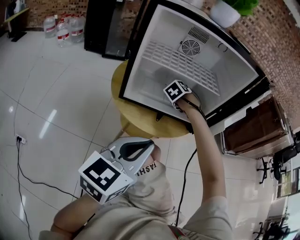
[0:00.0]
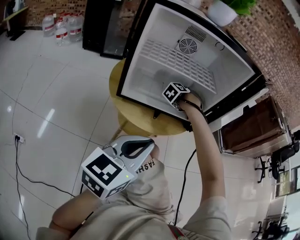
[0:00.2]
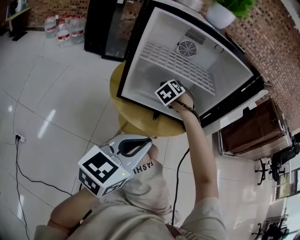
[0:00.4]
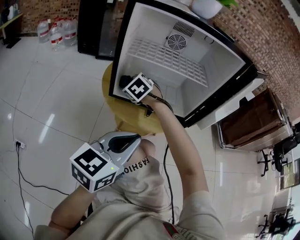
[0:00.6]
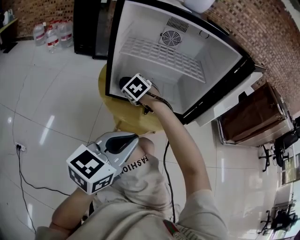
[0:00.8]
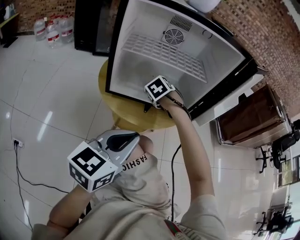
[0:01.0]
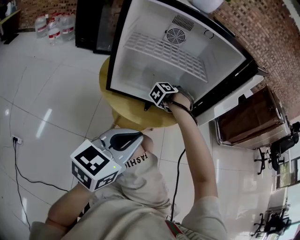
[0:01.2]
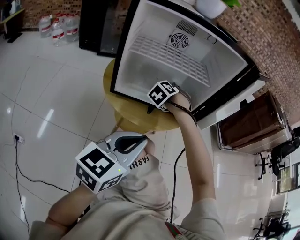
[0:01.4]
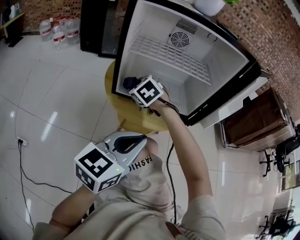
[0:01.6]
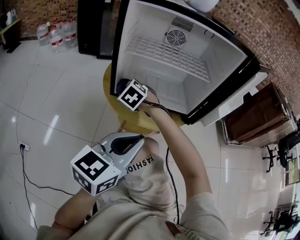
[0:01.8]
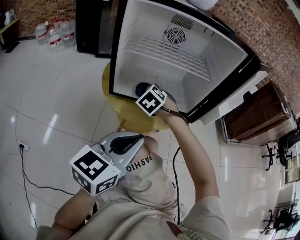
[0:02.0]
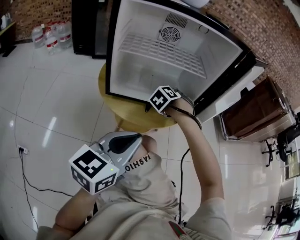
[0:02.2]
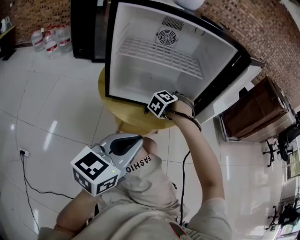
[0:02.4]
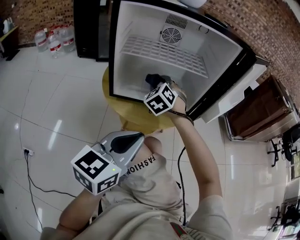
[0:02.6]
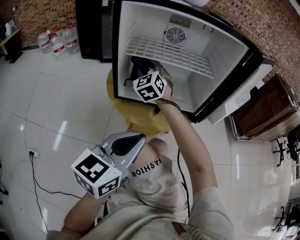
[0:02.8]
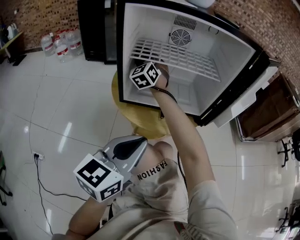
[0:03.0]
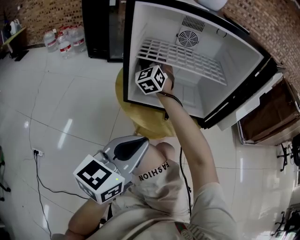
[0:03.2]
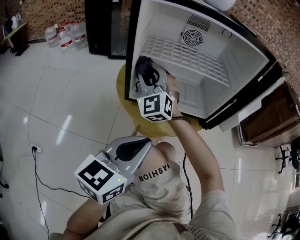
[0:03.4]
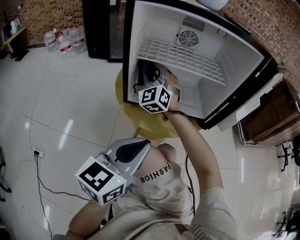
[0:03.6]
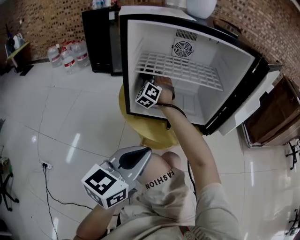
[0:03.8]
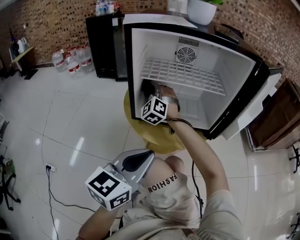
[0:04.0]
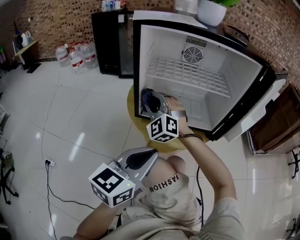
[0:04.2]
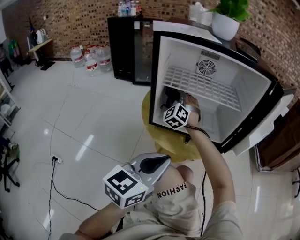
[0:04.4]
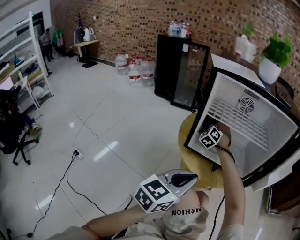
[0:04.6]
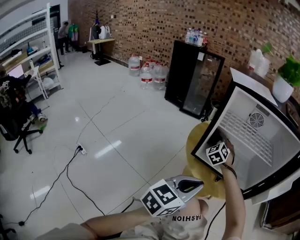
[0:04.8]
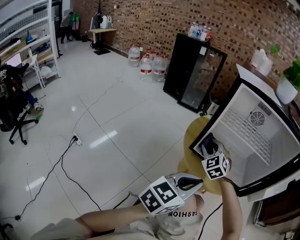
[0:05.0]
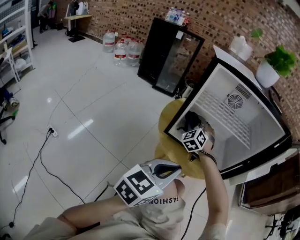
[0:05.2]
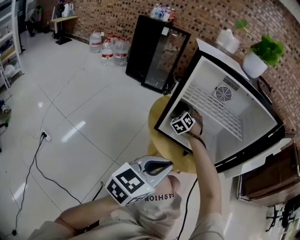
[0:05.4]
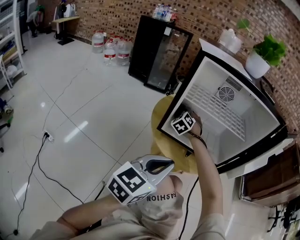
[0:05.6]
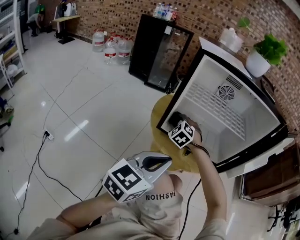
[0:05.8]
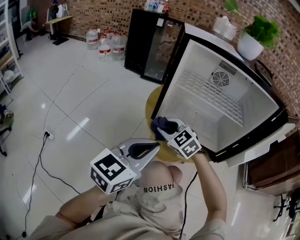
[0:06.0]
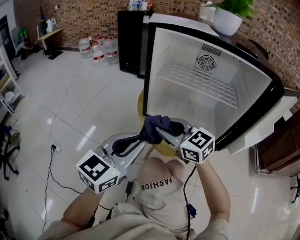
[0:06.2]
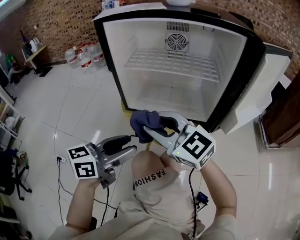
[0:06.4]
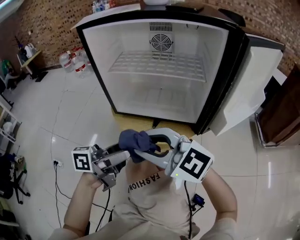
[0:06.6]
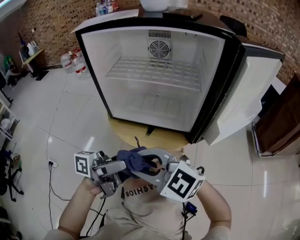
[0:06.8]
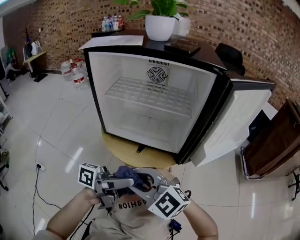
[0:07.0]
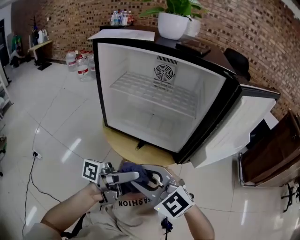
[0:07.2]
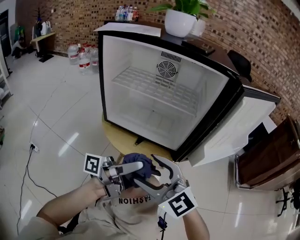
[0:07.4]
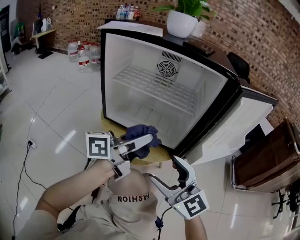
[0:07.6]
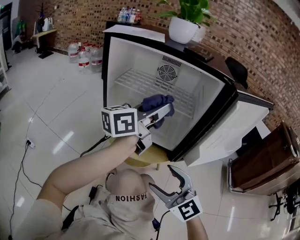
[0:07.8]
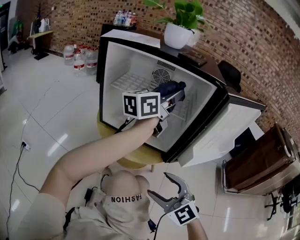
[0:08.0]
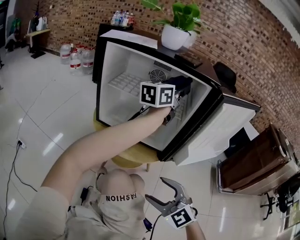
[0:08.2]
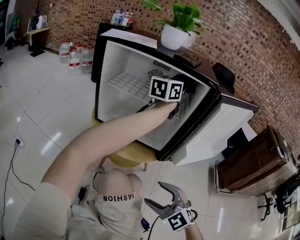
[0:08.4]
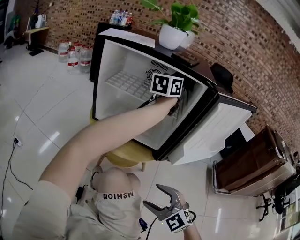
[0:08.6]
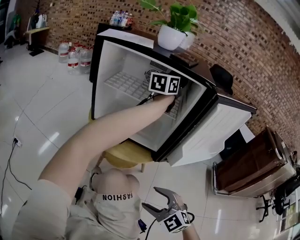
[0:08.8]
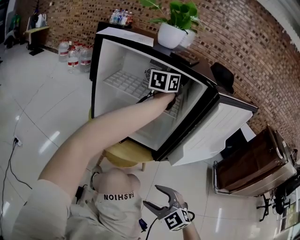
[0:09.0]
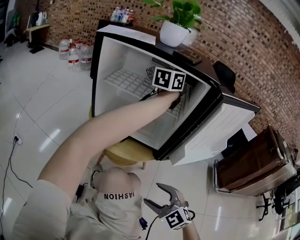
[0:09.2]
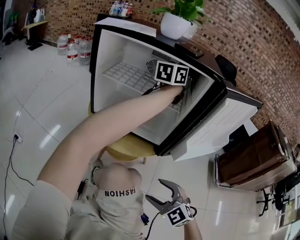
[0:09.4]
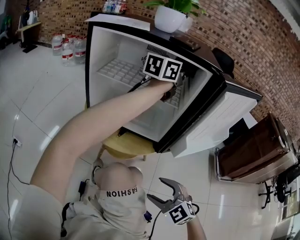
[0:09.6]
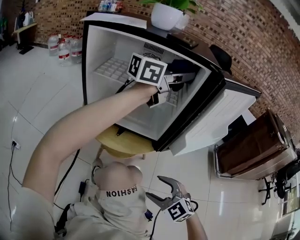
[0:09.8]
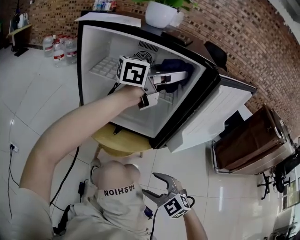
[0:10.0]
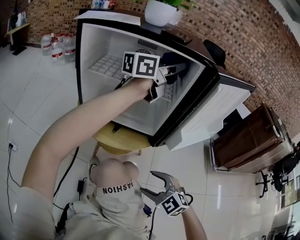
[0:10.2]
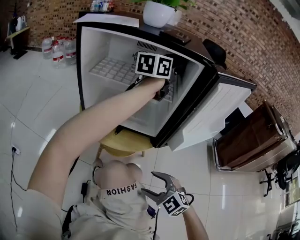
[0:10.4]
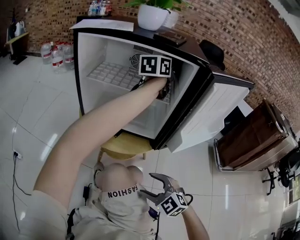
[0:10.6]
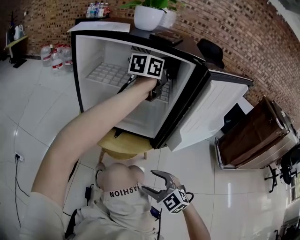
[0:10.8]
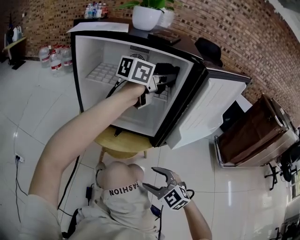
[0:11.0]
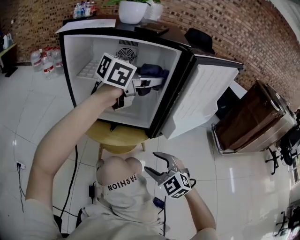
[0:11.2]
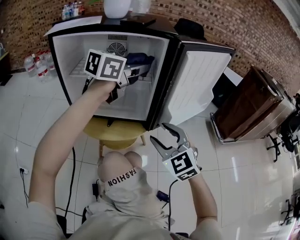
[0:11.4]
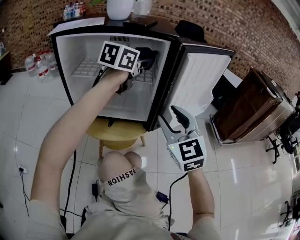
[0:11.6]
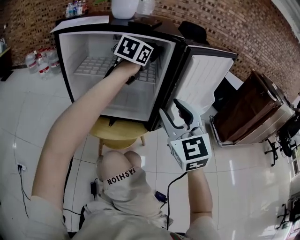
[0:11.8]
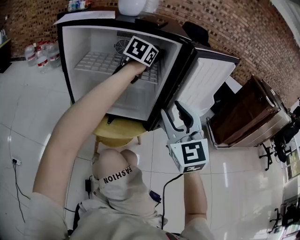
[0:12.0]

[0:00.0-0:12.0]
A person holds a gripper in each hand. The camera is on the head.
0:00.0 to 0:01.6: The right gripper ends up some 20 cm from where it was, and swivels some 40 degrees.
0:01.6 to 0:03.0: The right gripper ends up some 20 cm from where it was, and angles its fingers upward, by about 40 degrees.
0:03.0 to 0:04.4: The right gripper swings forward and backward, about 15 cm each way, with 3 reversals.
0:04.4 to 0:06.0: The right gripper shifts by approximately 20 cm, and turns by approximately 50 degrees. The left gripper changes place by some 5 cm.
0:06.0 to 0:07.6: The right gripper swings up and down, approximately 10 cm each way, with 2 reversals, tips its fingers upward by approximately 40 degrees, and opens up. Meanwhile the left gripper goes downward and returns, roughly 5 cm each way, rolls counterclockwise, seen from behind, by approximately 40 degrees, and opens its fingers.
0:07.6 to 0:09.0: The right gripper goes approximately 20 cm downward, backward and to the right, and tilts its fingers roughly 40 degrees downward, while the left gripper moves forward, upward and to the right, some 35 cm, and changes its angle by some 40 degrees.
0:09.0 to 0:10.4: The left gripper reaches some 15 cm backward, then returns.
0:10.4 to 0:12.0: The right gripper heads upward and forward, covering about 30 cm, angles its fingers upward, by roughly 40 degrees, and closes. Meanwhile the left gripper travels backward and back again, roughly 15 cm each way, and rotates some 30 degrees.

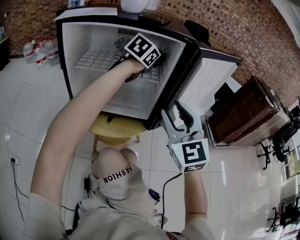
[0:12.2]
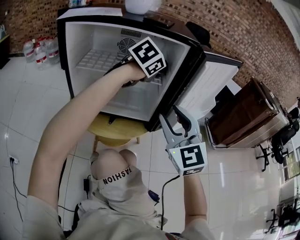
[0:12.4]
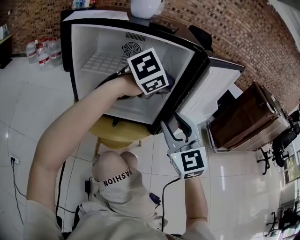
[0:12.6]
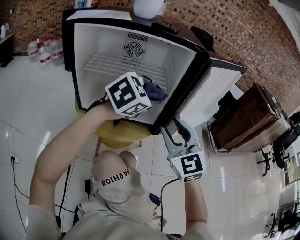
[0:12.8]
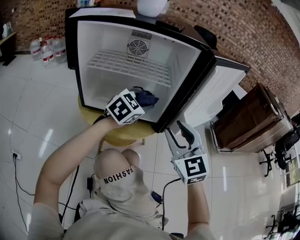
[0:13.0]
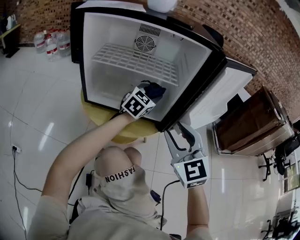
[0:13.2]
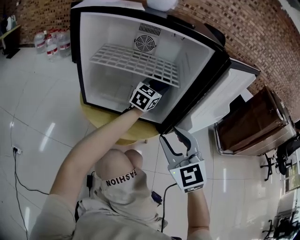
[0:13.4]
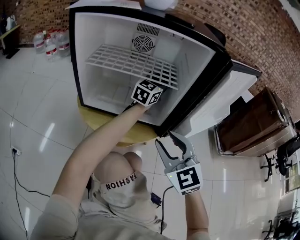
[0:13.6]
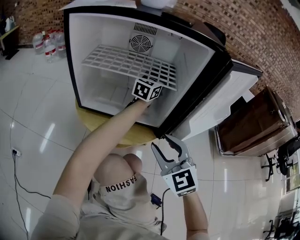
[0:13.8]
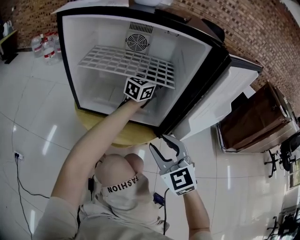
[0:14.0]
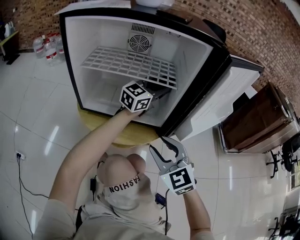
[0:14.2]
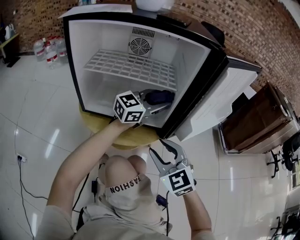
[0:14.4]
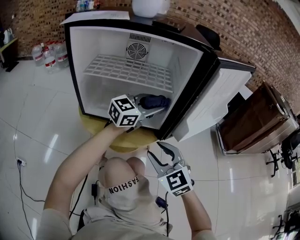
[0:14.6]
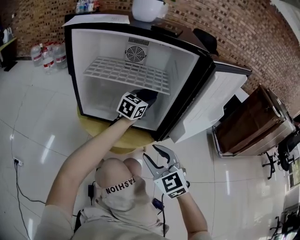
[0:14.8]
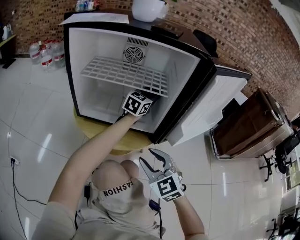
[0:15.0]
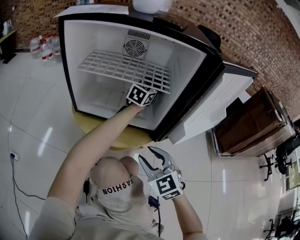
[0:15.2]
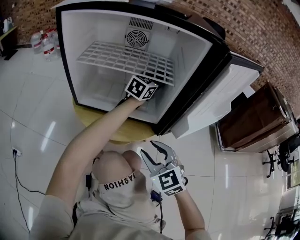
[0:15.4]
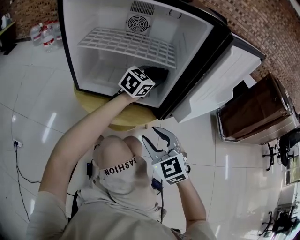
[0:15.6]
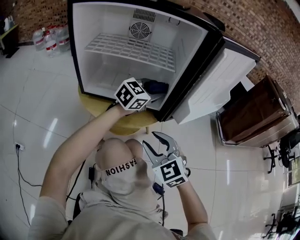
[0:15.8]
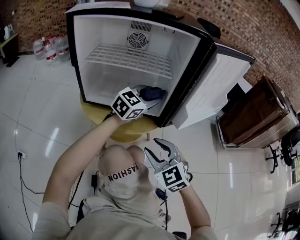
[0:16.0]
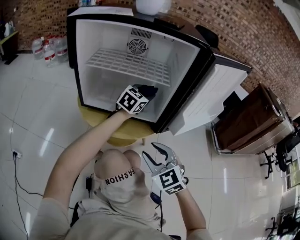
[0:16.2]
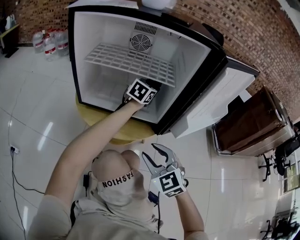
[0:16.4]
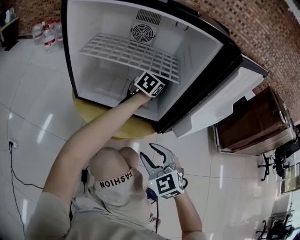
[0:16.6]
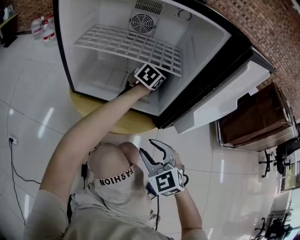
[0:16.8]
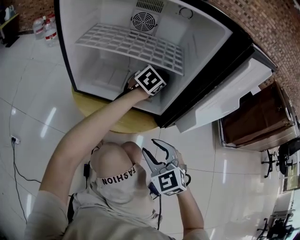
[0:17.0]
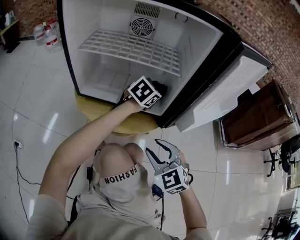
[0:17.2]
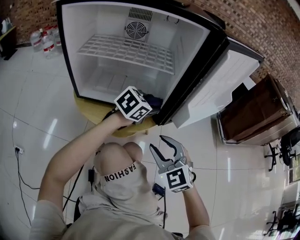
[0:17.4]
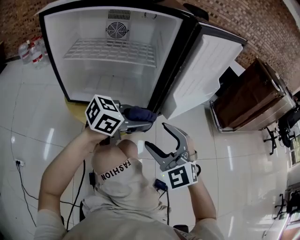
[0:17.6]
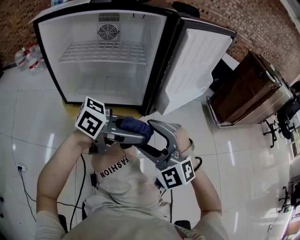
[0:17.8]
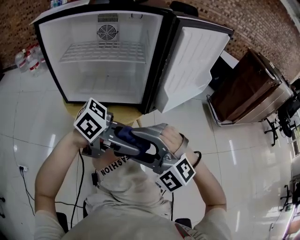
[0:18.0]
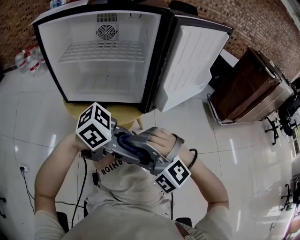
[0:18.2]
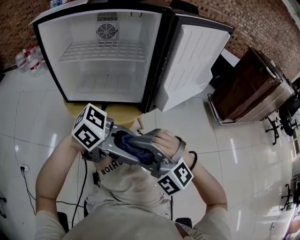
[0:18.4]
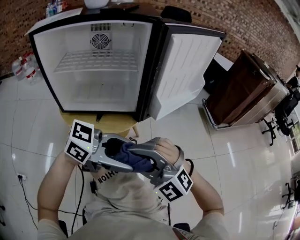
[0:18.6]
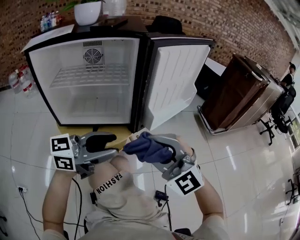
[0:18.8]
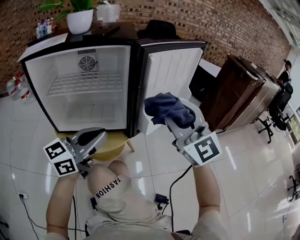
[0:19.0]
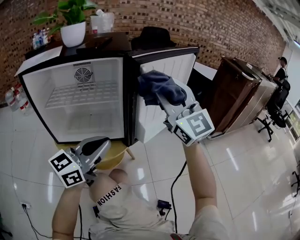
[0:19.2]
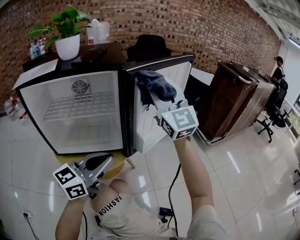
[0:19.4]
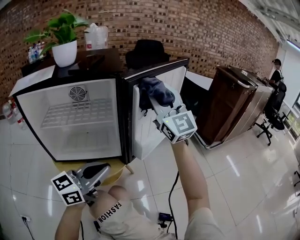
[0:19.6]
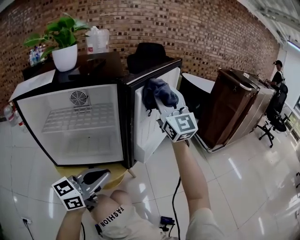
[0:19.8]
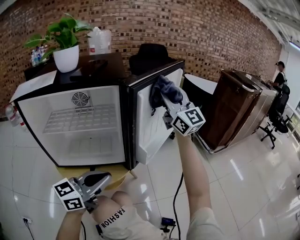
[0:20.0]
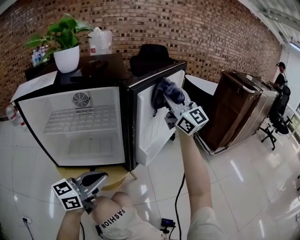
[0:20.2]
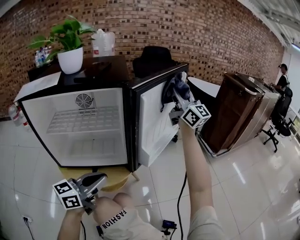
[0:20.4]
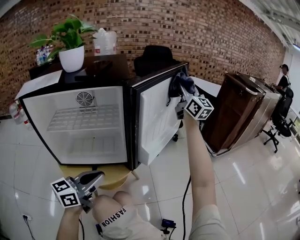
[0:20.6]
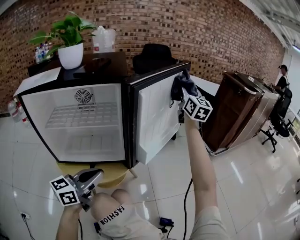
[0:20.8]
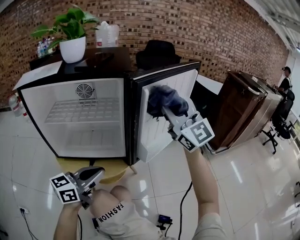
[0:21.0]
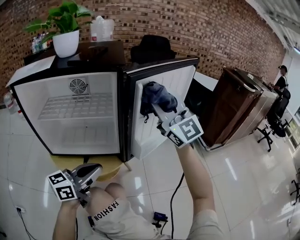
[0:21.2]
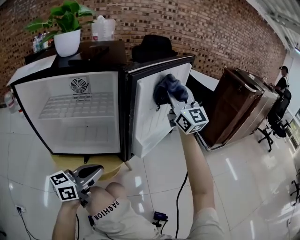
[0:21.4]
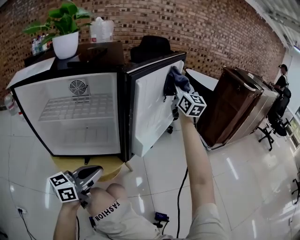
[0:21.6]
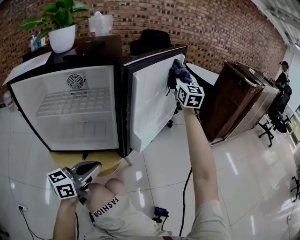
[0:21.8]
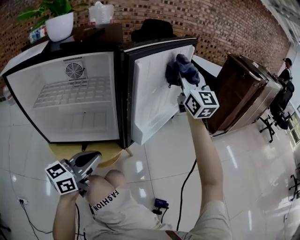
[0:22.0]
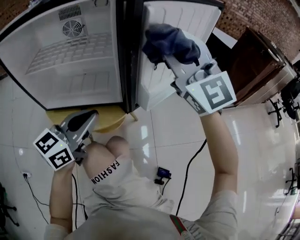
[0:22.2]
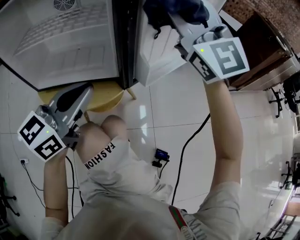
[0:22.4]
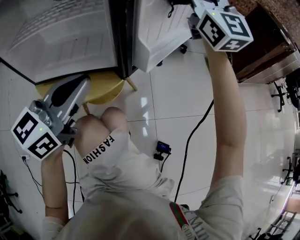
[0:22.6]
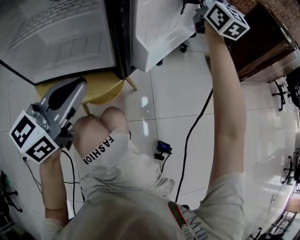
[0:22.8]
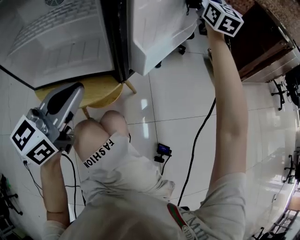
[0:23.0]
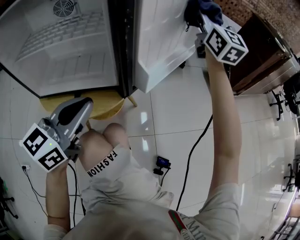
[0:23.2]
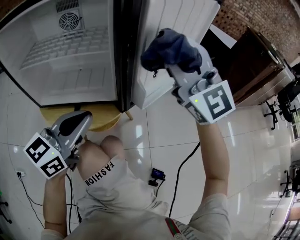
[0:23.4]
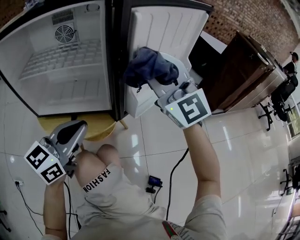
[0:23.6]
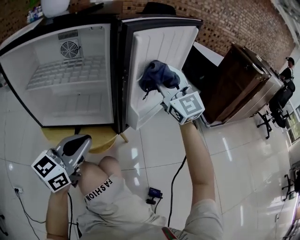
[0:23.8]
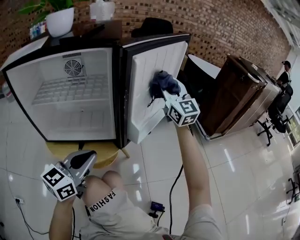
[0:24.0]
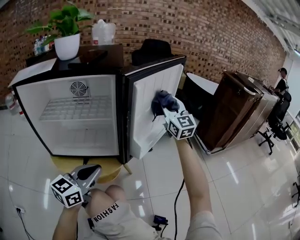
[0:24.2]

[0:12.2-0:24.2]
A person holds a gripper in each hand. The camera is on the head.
0:12.2 to 0:13.8: Both grippers move downward, about 10 cm. The left gripper goes backward and returns, roughly 20 cm each way, and angles its fingers upward, by some 30 degrees.
0:13.8 to 0:15.2: The left gripper reaches some 15 cm backward, then returns. Meanwhile the right gripper heads downward, covering roughly 5 cm.
0:15.2 to 0:16.6: The left gripper shifts roughly 5 cm downward, and goes backward and returns, some 15 cm each way.
0:16.6 to 0:18.2: The right gripper changes place by roughly 15 cm, and twists some 40 degrees counterclockwise, seen from behind. The left gripper changes place by approximately 40 cm, and swivels about 70 degrees.
0:18.2 to 0:19.8: The right gripper shifts by roughly 50 cm, points its fingers some 50 degrees further upward, and closes its fingers; the left gripper moves approximately 15 cm, rotates some 60 degrees, and closes its fingers.
0:19.8 to 0:21.2: The right gripper moves roughly 15 cm forward and comes back.
0:21.2 to 0:22.6: The right gripper swings forward and backward, about 25 cm each way, with 2 reversals.
0:22.6 to 0:24.2: The right gripper swings forward and backward, some 25 cm each way, with 2 reversals.
